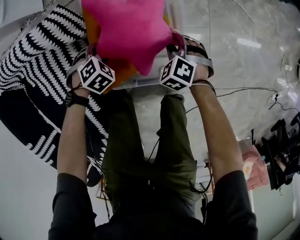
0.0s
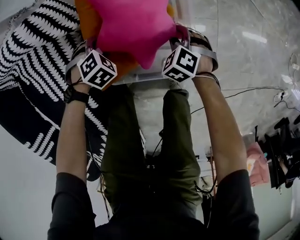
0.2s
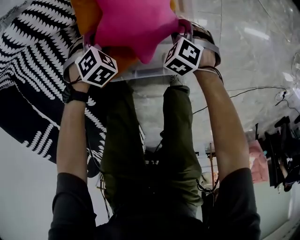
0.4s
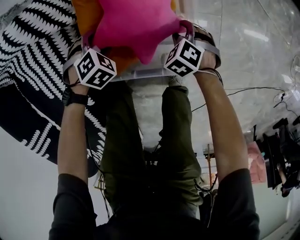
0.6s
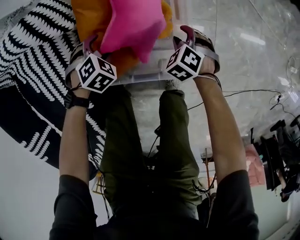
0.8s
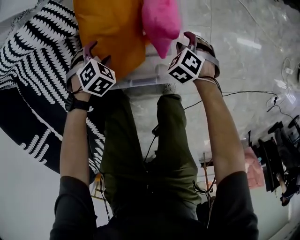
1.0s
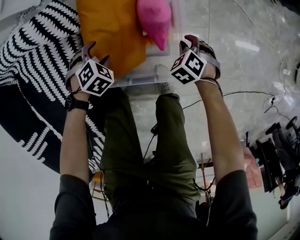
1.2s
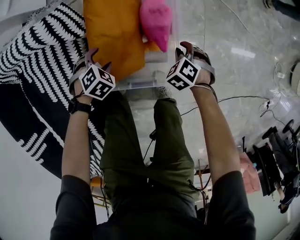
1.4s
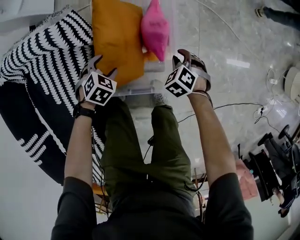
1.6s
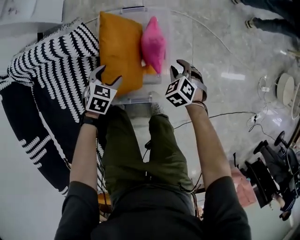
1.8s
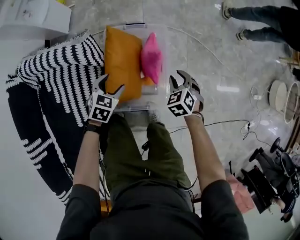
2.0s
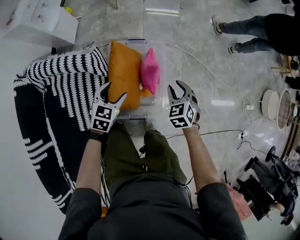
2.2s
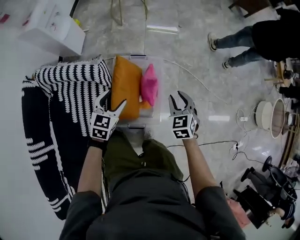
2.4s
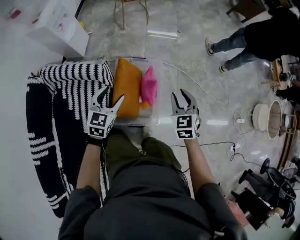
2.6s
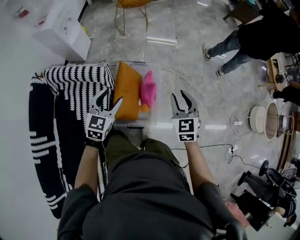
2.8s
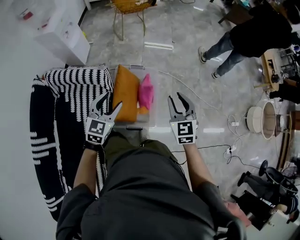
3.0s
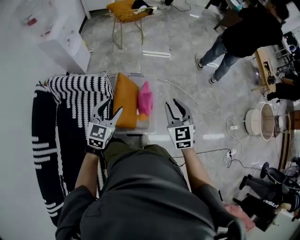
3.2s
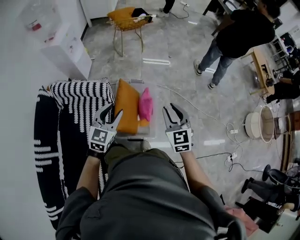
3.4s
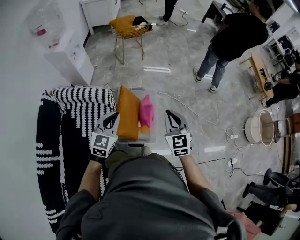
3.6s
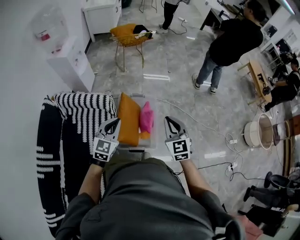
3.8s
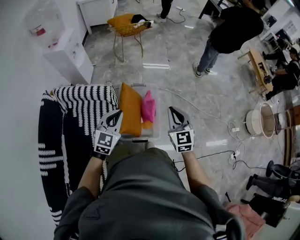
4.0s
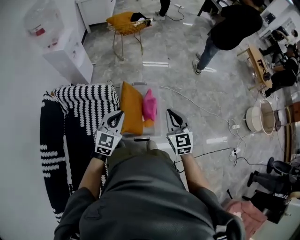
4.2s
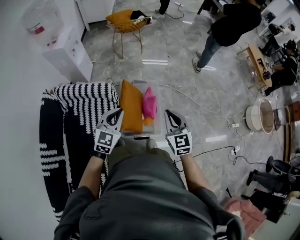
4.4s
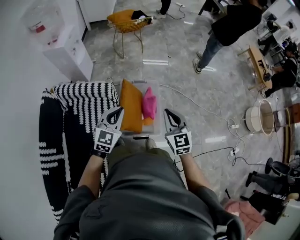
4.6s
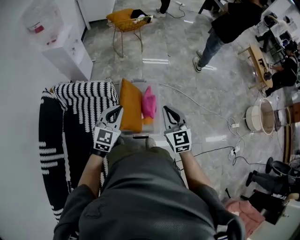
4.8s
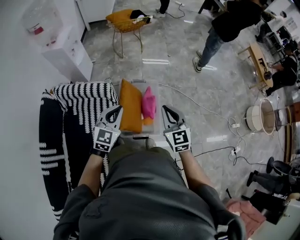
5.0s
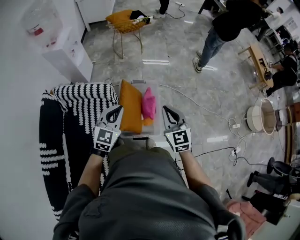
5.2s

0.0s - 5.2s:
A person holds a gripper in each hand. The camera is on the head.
0.0s - 1.8s: The two grippers go approximately 15 cm upward. The left gripper swivels approximately 40 degrees.
1.8s - 3.4s: Both grippers travel together upward, some 50 cm. The right gripper tips its fingers upward by some 50 degrees. Meanwhile the left gripper tilts its fingers roughly 40 degrees upward.
3.4s - 5.2s: The left gripper closes up. The right gripper changes place by roughly 5 cm.

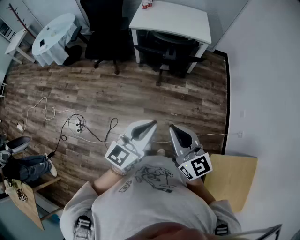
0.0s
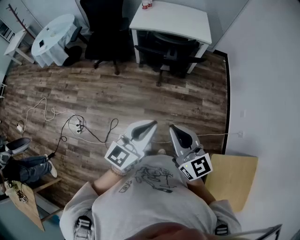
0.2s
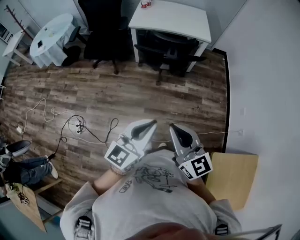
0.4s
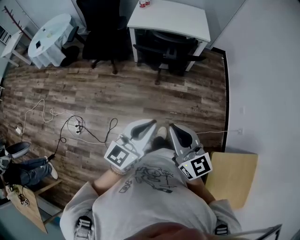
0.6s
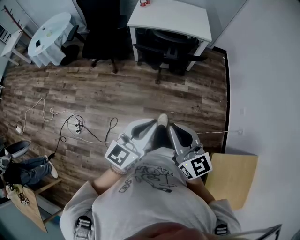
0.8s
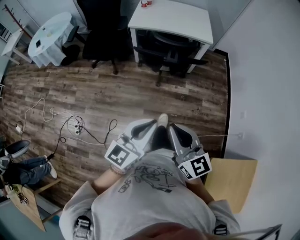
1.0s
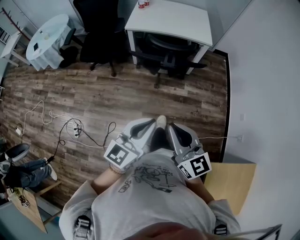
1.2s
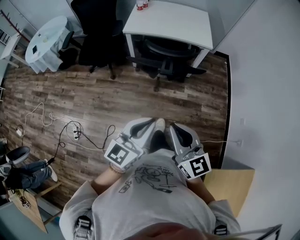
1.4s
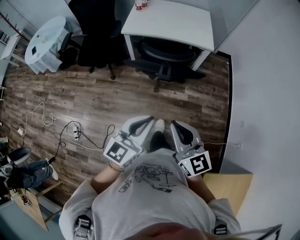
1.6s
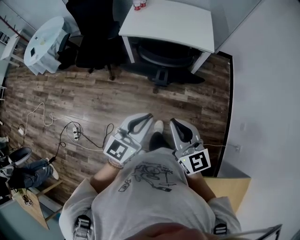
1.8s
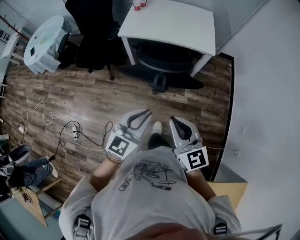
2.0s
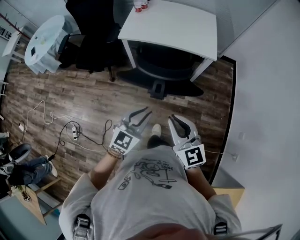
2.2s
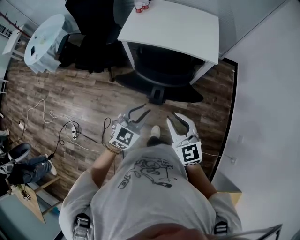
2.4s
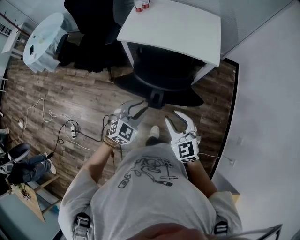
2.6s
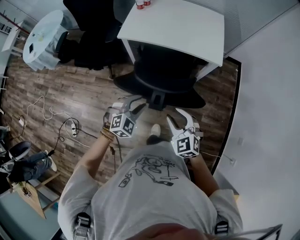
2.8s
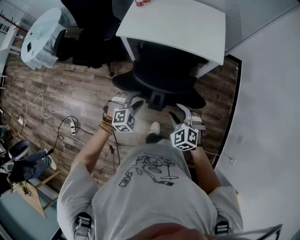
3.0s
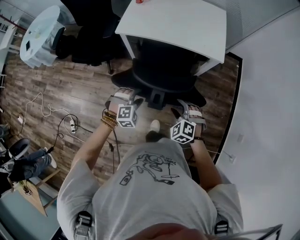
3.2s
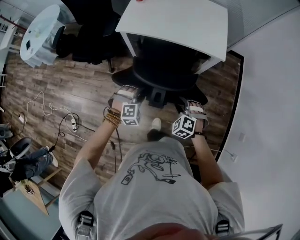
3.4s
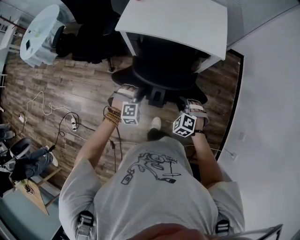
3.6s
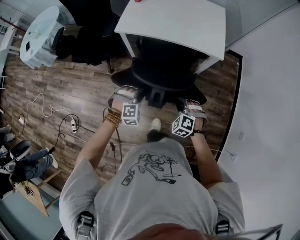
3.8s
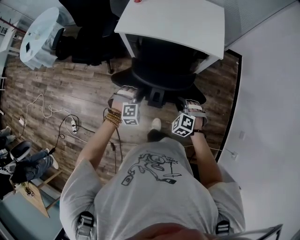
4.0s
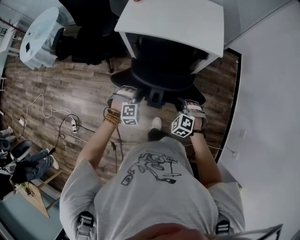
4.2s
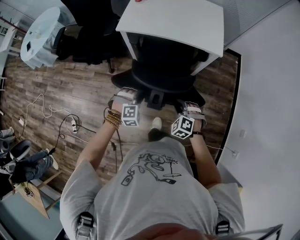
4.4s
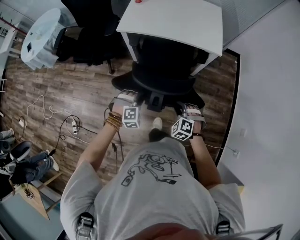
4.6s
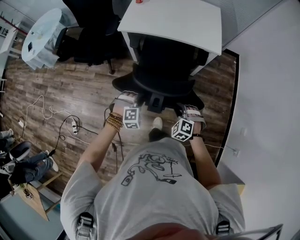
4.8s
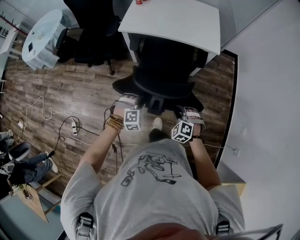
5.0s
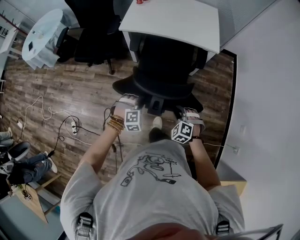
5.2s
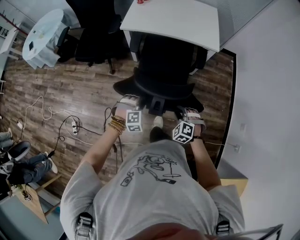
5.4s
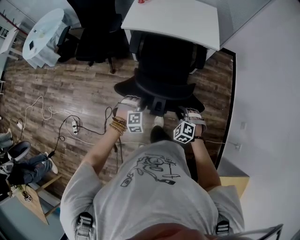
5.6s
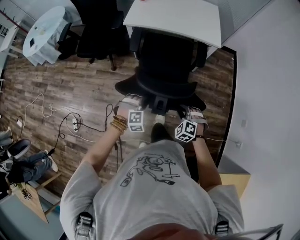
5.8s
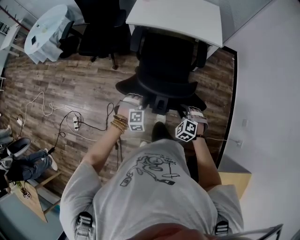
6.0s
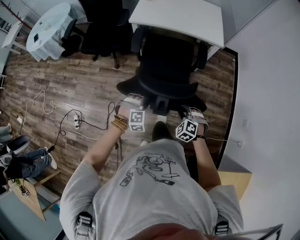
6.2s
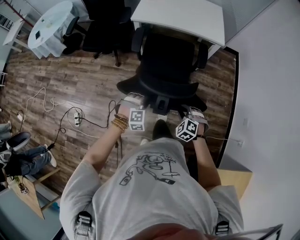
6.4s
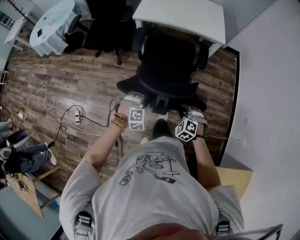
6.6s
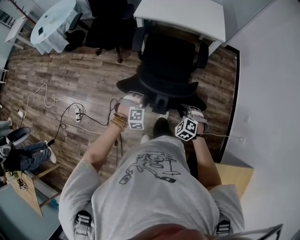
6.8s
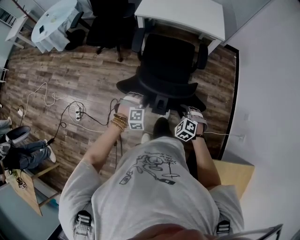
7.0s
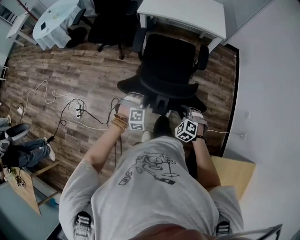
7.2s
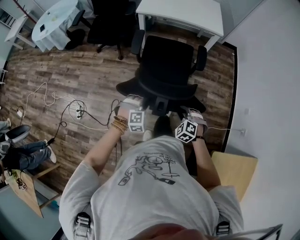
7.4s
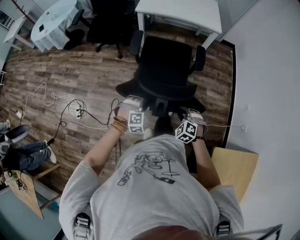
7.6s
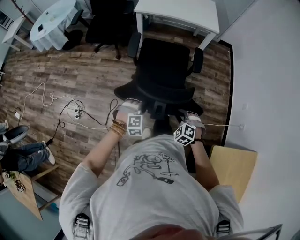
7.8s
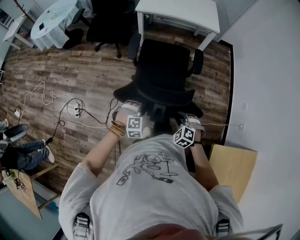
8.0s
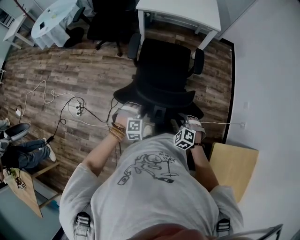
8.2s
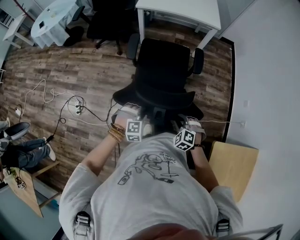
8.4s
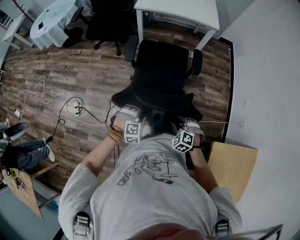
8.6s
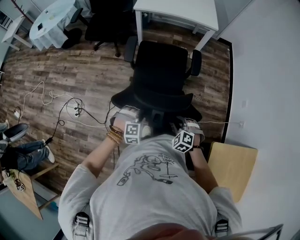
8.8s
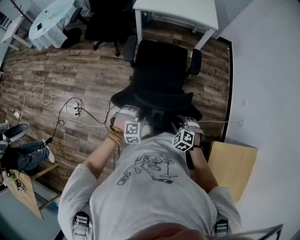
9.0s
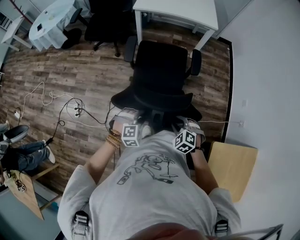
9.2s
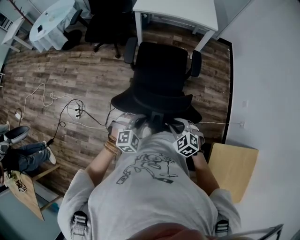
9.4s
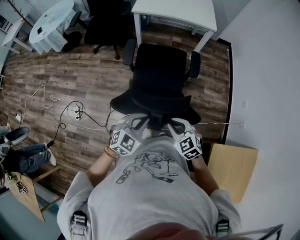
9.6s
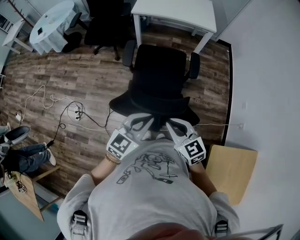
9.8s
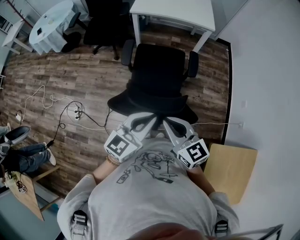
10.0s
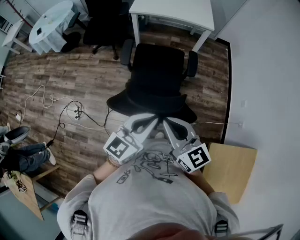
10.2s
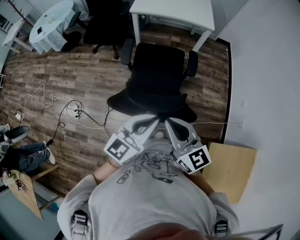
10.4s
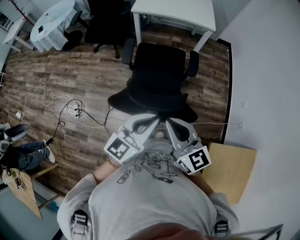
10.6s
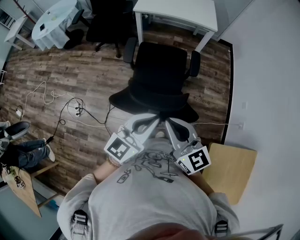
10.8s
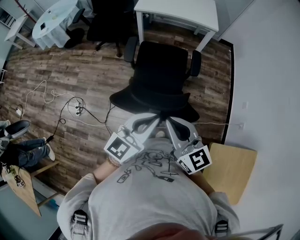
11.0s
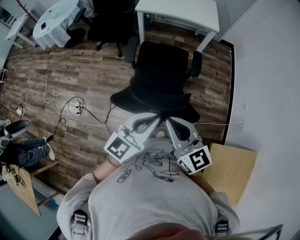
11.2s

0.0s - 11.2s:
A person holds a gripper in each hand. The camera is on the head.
0.0s - 1.6s: Both grippers travel together forward, about 25 cm.
1.6s - 3.2s: Both grippers move forward and downward, some 40 cm. The right gripper tips its fingers downward by some 50 degrees, and opens. The left gripper tips its fingers downward by approximately 50 degrees, and opens up.
3.2s - 4.8s: Both grippers move backward, some 10 cm. The right gripper closes its fingers; the left gripper closes.
4.8s - 6.4s: Both grippers move backward, some 20 cm.
6.4s - 8.0s: The two grippers go approximately 25 cm backward.
8.0s - 9.6s: Both grippers travel together upward, about 15 cm. The right gripper swivels approximately 30 degrees, while the left gripper swivels roughly 50 degrees, and closes.
9.6s - 11.2s: Both grippers travel together upward, about 15 cm. The left gripper rotates about 40 degrees, while the right gripper tips its fingers upward by roughly 30 degrees.

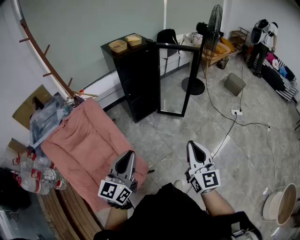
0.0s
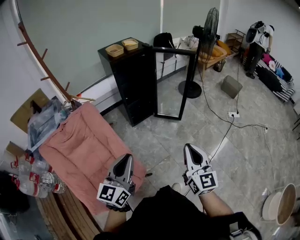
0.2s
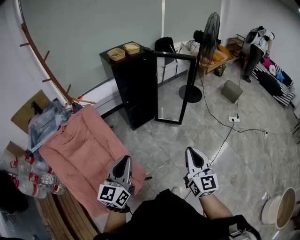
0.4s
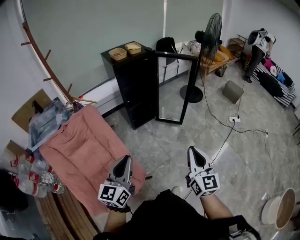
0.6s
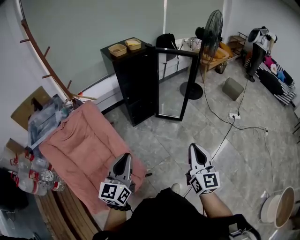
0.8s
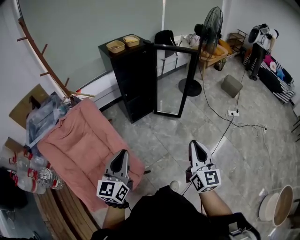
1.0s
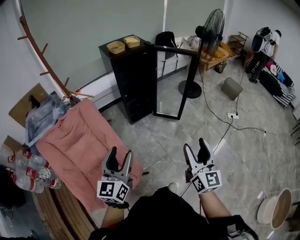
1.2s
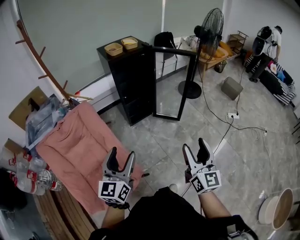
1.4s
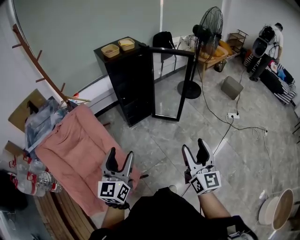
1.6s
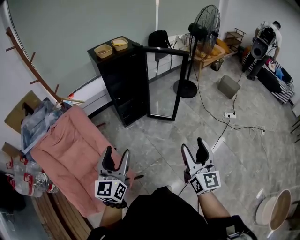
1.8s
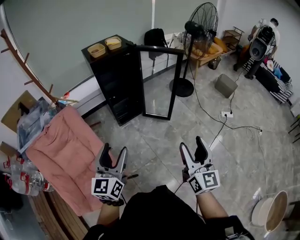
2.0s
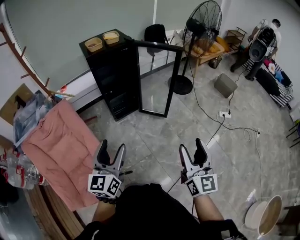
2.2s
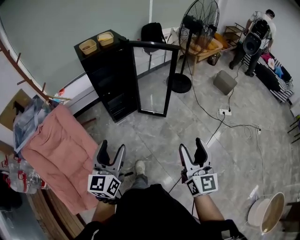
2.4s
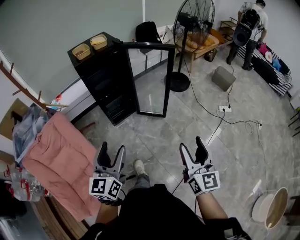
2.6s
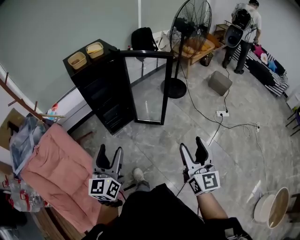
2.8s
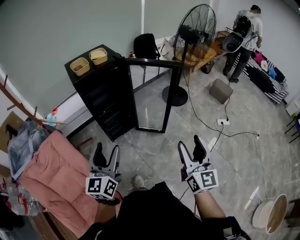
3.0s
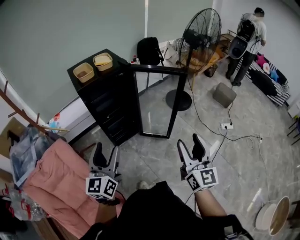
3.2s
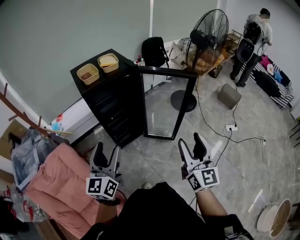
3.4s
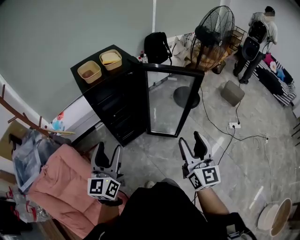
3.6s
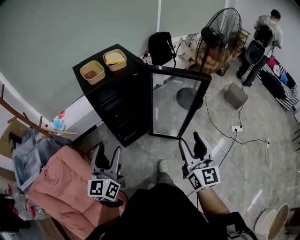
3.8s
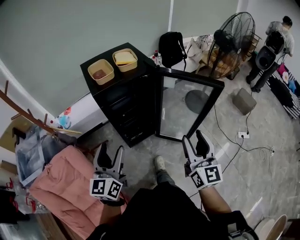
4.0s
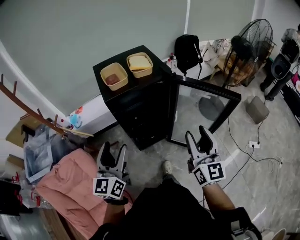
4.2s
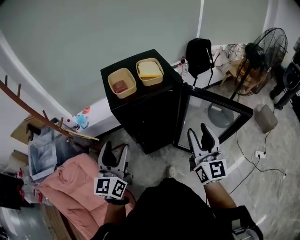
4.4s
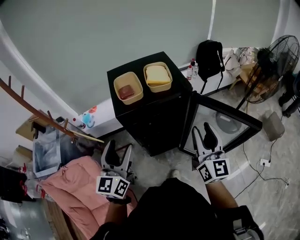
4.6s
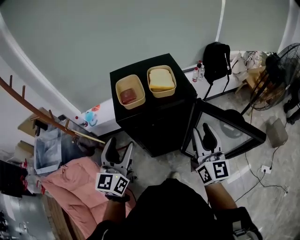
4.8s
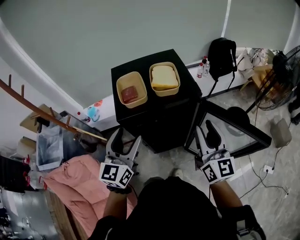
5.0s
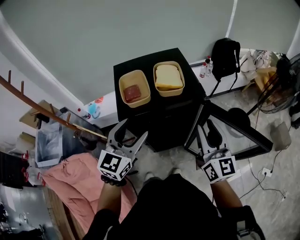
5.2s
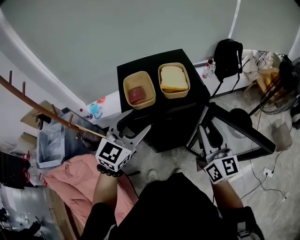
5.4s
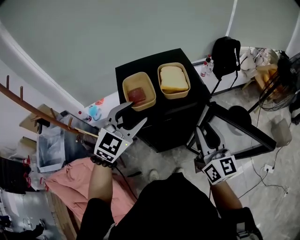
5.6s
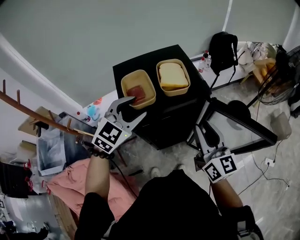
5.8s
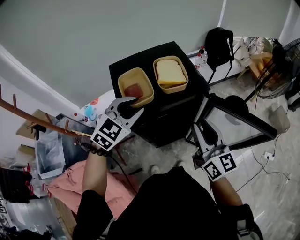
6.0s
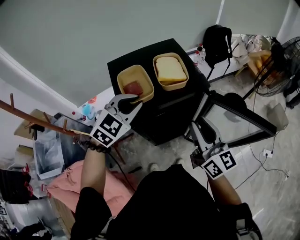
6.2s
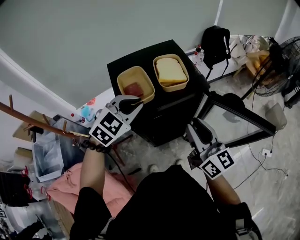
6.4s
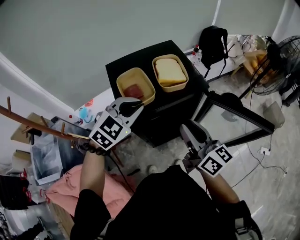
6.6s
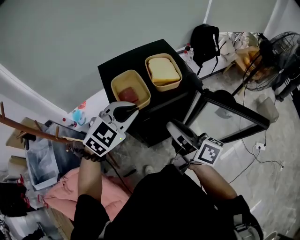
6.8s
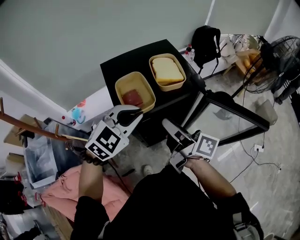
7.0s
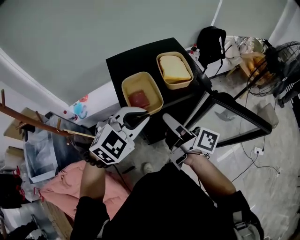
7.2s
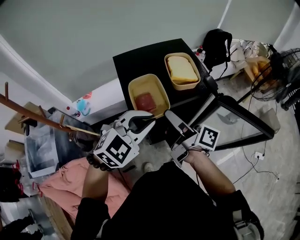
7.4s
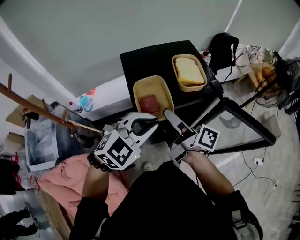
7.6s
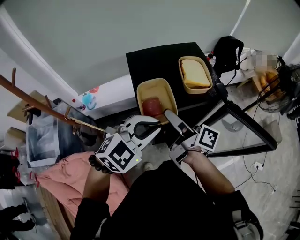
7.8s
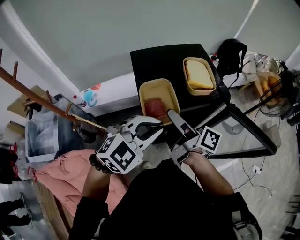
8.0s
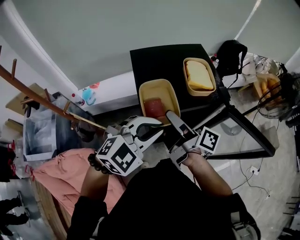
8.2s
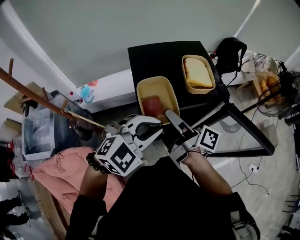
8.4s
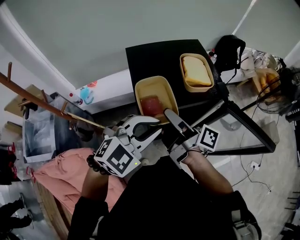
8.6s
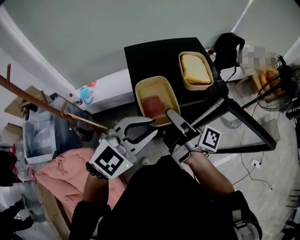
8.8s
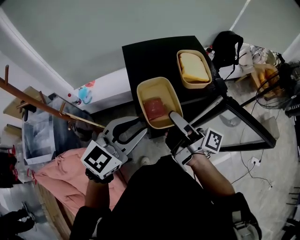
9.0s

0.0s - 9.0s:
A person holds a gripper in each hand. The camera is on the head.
0.0s - 1.6s: The right gripper shifts approximately 5 cm to the right, and opens; the left gripper opens its fingers.
1.6s - 3.0s: The right gripper shifts roughly 20 cm forward and to the right. The left gripper goes about 20 cm forward.
3.0s - 4.4s: Both grippers move forward and to the left, some 35 cm.
4.4s - 6.0s: The left gripper travels forward by about 20 cm, angles its fingers downward, by about 30 degrees, and closes its fingers, while the right gripper travels forward and to the left by some 15 cm.
6.0s - 7.6s: The left gripper travels backward by approximately 10 cm, while the right gripper heads to the left, covering roughly 15 cm, rotates around the line of its fingers by roughly 60 degrees, clockwise from behind, and opens its fingers.
7.6s - 9.0s: The left gripper ends up approximately 5 cm from where it was, and changes its angle by approximately 30 degrees.
